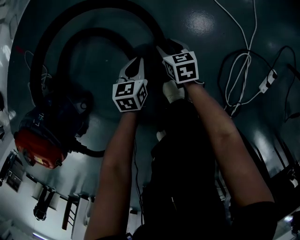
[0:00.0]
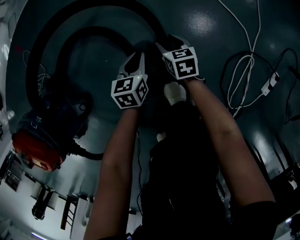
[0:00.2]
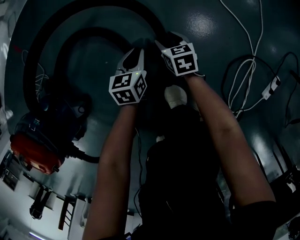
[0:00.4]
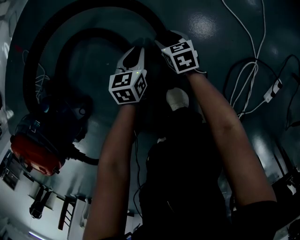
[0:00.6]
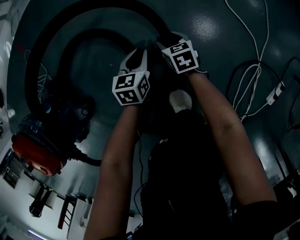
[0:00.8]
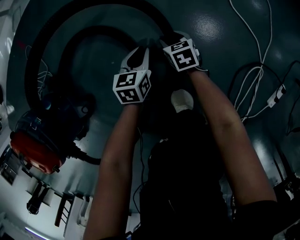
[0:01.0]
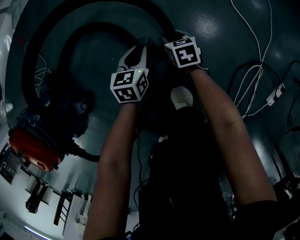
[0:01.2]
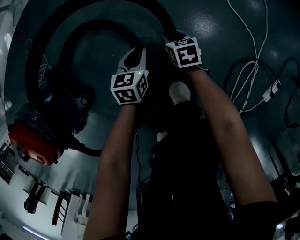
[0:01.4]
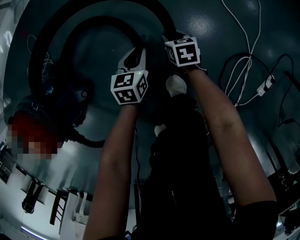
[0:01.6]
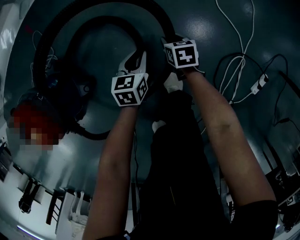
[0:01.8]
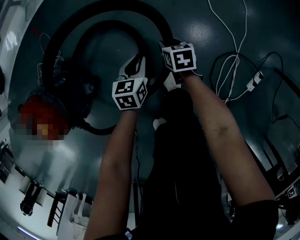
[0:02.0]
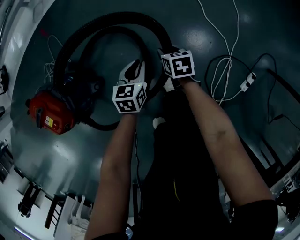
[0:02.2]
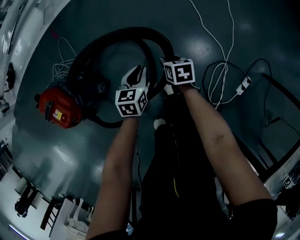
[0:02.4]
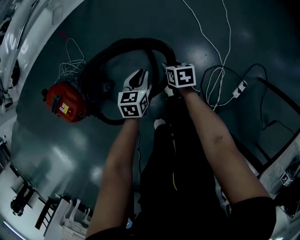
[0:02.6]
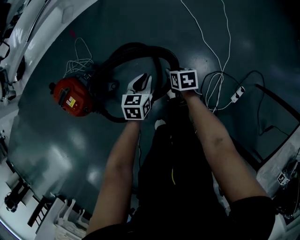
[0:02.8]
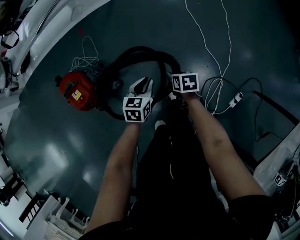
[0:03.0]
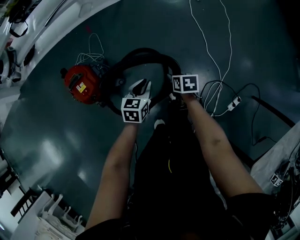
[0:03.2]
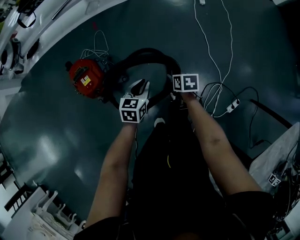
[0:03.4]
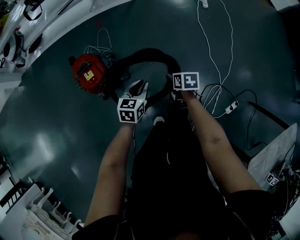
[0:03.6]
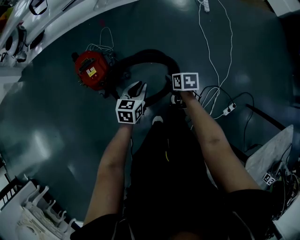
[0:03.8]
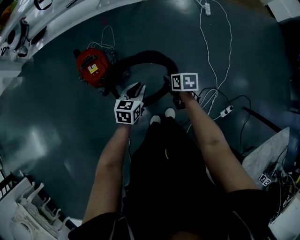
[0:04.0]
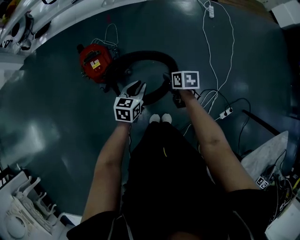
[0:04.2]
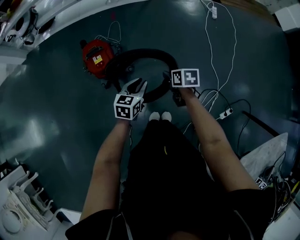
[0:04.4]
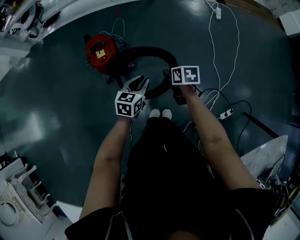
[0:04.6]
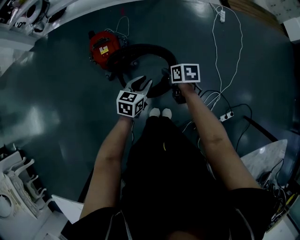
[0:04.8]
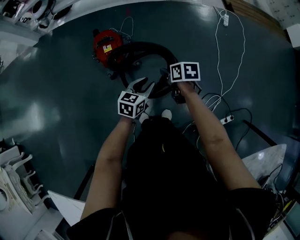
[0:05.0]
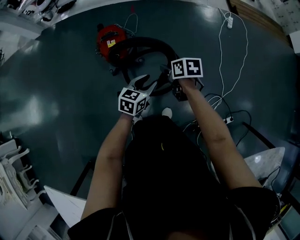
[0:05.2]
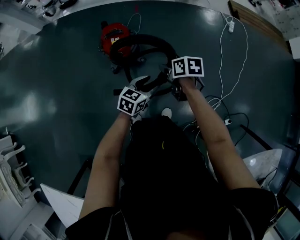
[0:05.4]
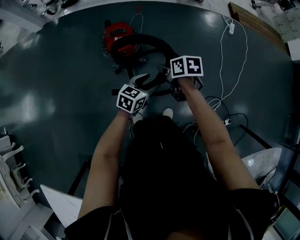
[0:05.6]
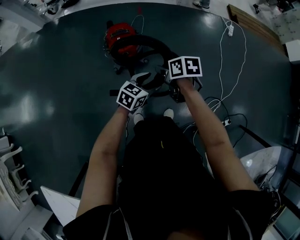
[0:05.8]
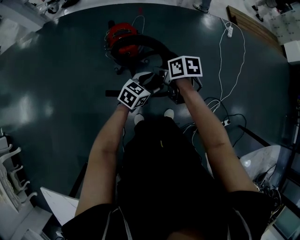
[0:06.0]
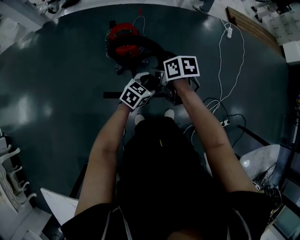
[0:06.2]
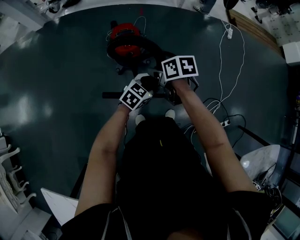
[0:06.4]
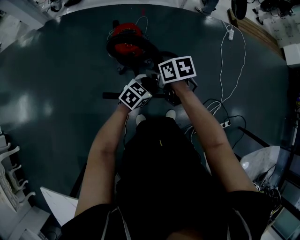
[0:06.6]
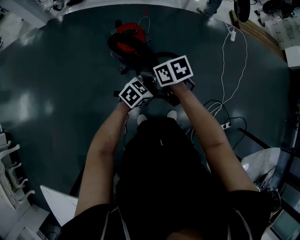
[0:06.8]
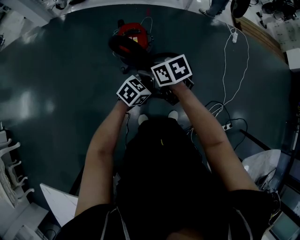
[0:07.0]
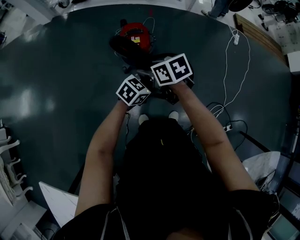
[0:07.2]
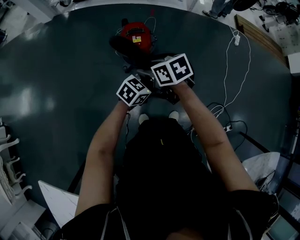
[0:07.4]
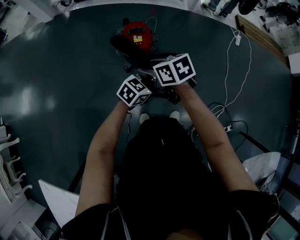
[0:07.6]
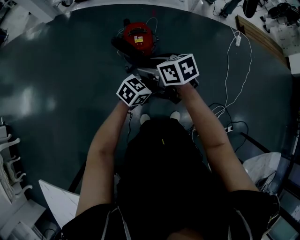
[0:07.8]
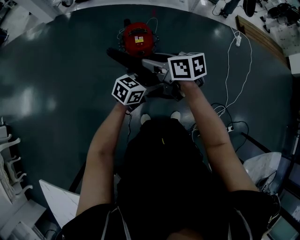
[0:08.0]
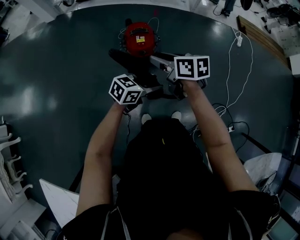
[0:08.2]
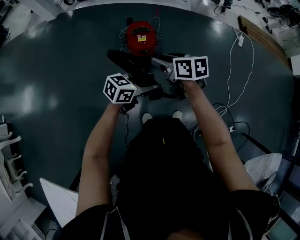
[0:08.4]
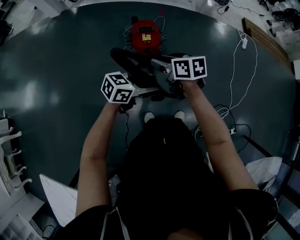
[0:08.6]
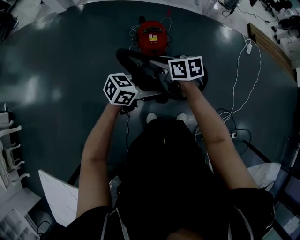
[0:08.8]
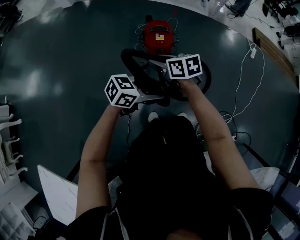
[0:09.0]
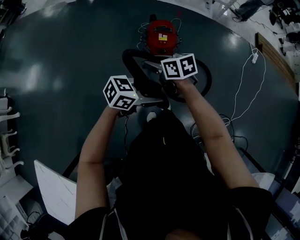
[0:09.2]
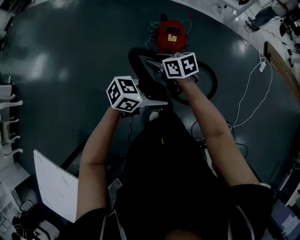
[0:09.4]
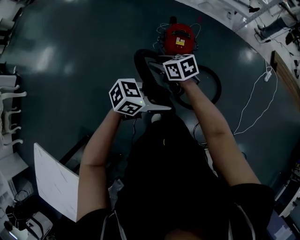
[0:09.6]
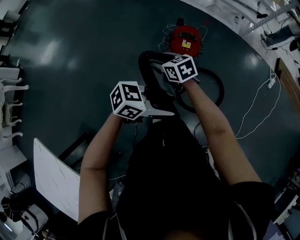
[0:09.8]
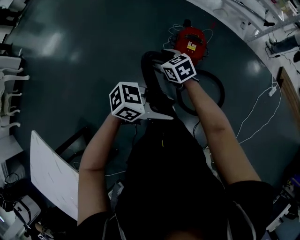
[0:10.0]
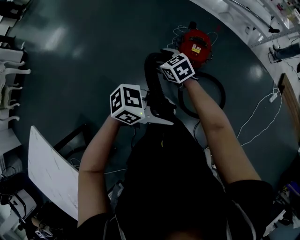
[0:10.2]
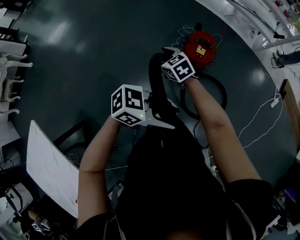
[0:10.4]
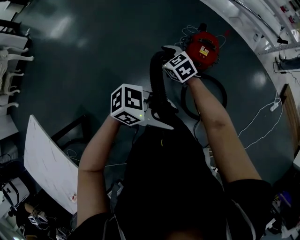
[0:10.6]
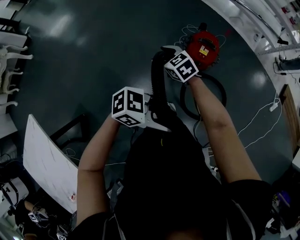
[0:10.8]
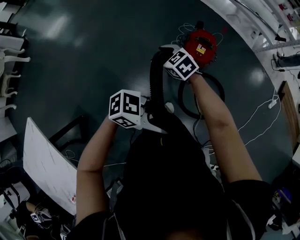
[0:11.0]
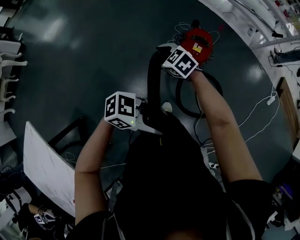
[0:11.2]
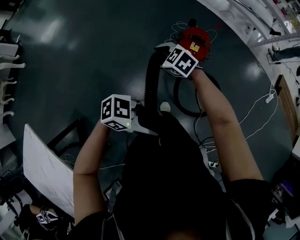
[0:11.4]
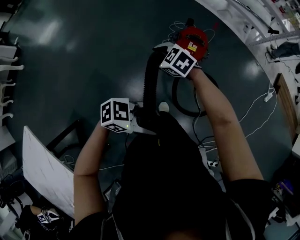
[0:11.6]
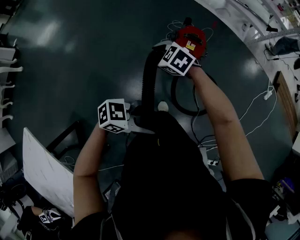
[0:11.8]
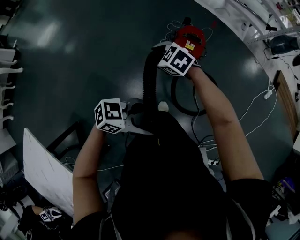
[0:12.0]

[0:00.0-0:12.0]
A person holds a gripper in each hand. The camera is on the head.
0:00.0 to 0:01.6: The left gripper changes place by about 5 cm. The right gripper reaches approximately 10 cm downward, then returns.
0:01.6 to 0:03.0: Both grippers travel together upward, some 40 cm.
0:03.0 to 0:04.4: The right gripper travels upward, to the left and backward by approximately 25 cm. The left gripper travels to the left, upward and backward by approximately 25 cm.
0:04.4 to 0:06.0: The left gripper travels backward and to the left by some 15 cm, and opens its fingers. Meanwhile the right gripper goes some 25 cm to the left and upward.
0:06.0 to 0:07.6: The right gripper moves some 15 cm, and turns by approximately 30 degrees; the left gripper shifts by roughly 10 cm.
0:07.6 to 0:09.0: The left gripper ends up approximately 10 cm from where it was. The right gripper changes place by approximately 10 cm.
0:09.0 to 0:10.4: The right gripper ends up roughly 20 cm from where it was, turns by some 40 degrees, and opens up, while the left gripper heads upward, covering some 5 cm.
0:10.4 to 0:12.0: The right gripper swivels roughly 20 degrees. Meanwhile the left gripper goes roughly 5 cm downward.

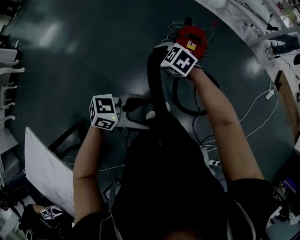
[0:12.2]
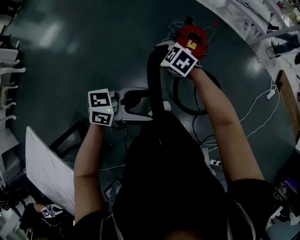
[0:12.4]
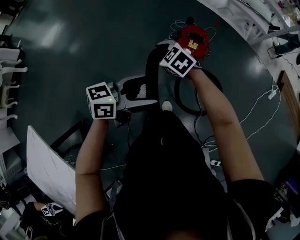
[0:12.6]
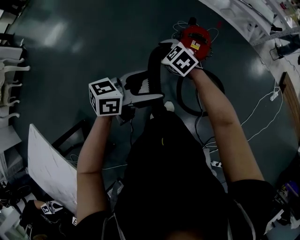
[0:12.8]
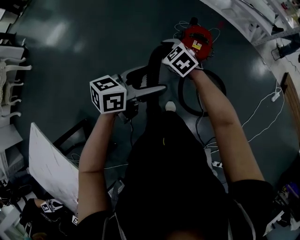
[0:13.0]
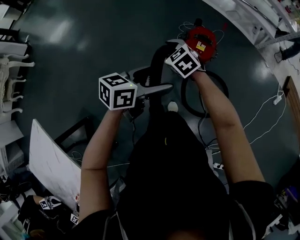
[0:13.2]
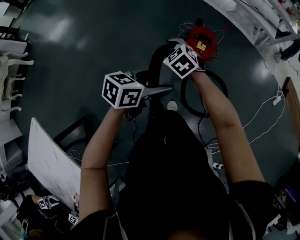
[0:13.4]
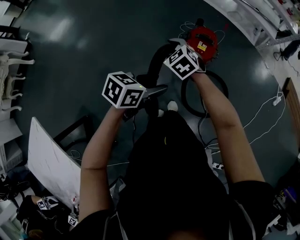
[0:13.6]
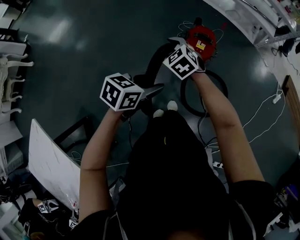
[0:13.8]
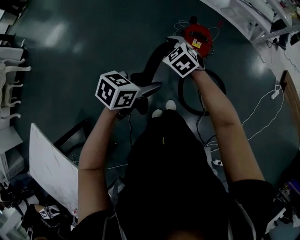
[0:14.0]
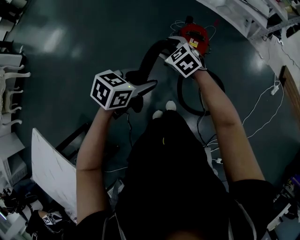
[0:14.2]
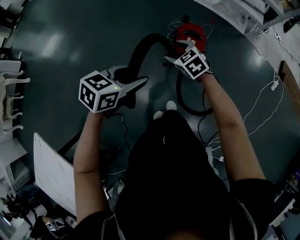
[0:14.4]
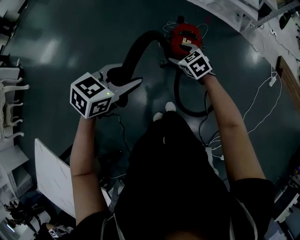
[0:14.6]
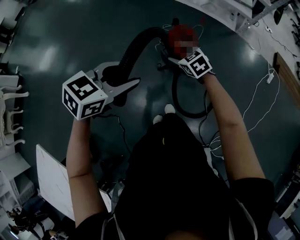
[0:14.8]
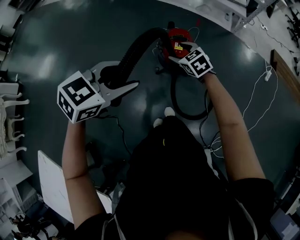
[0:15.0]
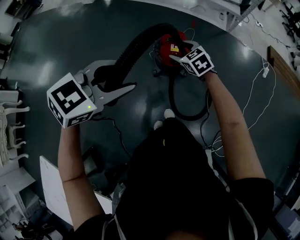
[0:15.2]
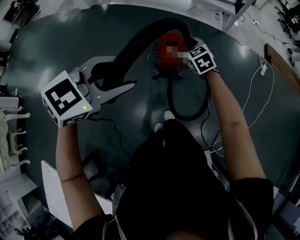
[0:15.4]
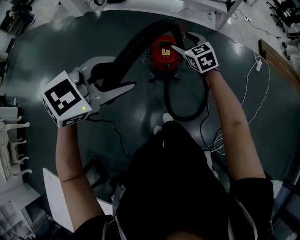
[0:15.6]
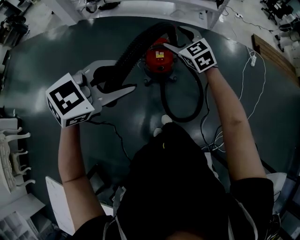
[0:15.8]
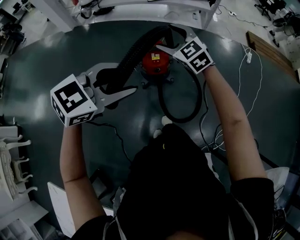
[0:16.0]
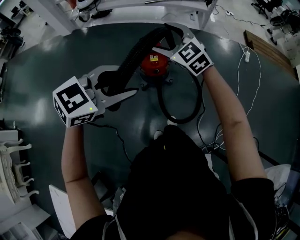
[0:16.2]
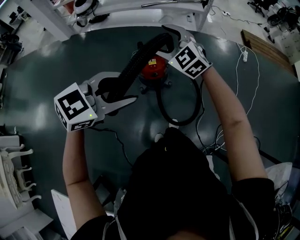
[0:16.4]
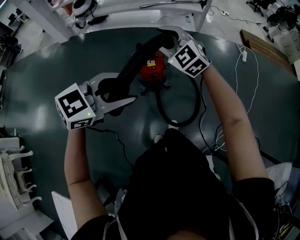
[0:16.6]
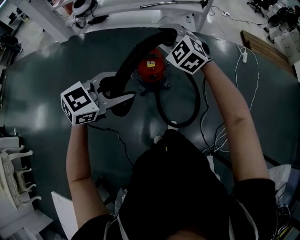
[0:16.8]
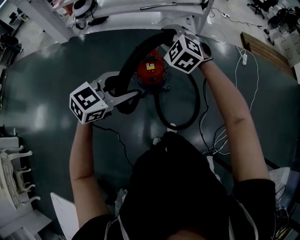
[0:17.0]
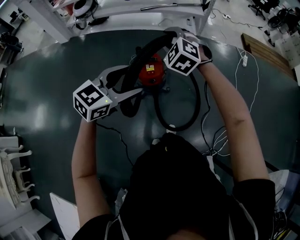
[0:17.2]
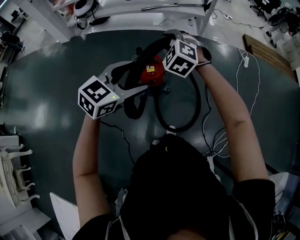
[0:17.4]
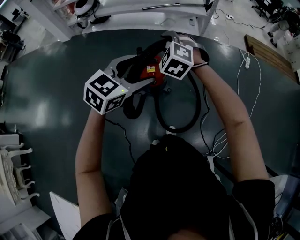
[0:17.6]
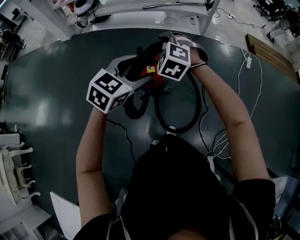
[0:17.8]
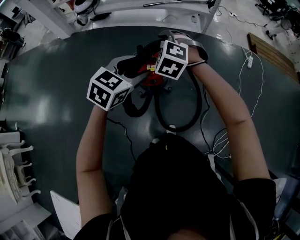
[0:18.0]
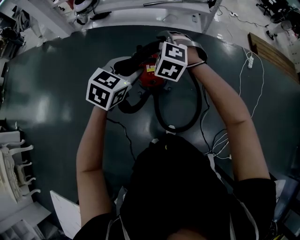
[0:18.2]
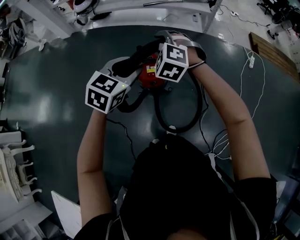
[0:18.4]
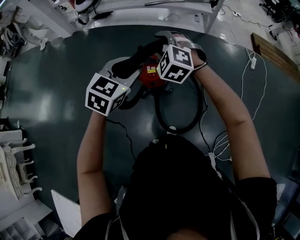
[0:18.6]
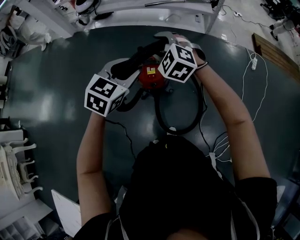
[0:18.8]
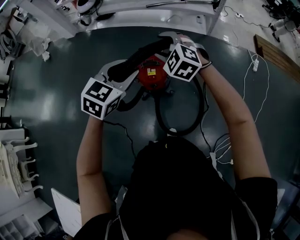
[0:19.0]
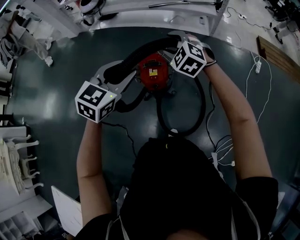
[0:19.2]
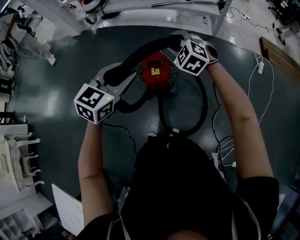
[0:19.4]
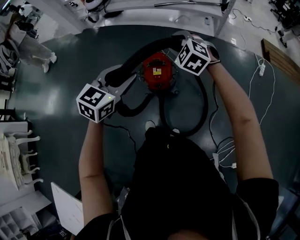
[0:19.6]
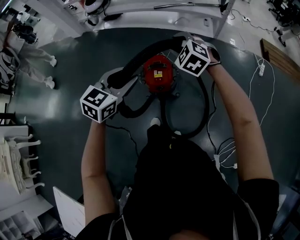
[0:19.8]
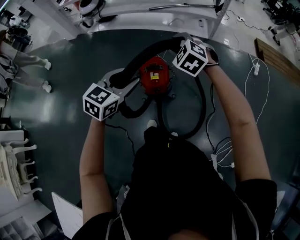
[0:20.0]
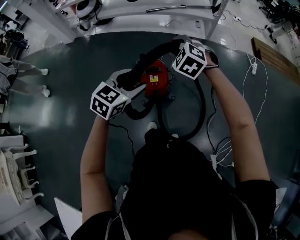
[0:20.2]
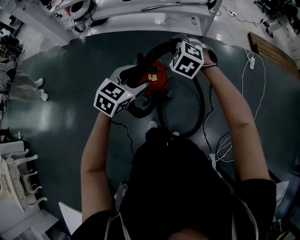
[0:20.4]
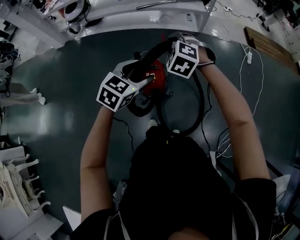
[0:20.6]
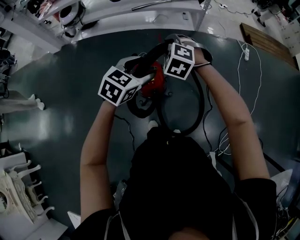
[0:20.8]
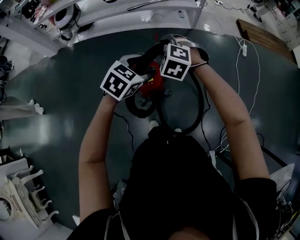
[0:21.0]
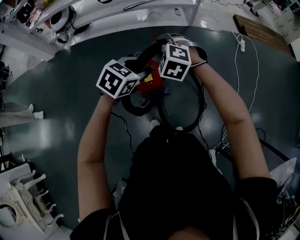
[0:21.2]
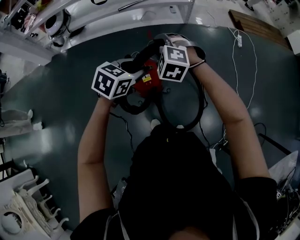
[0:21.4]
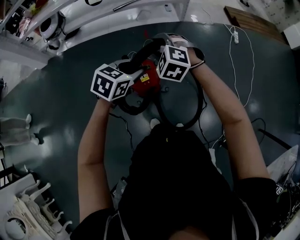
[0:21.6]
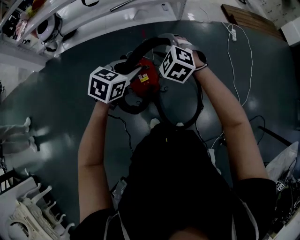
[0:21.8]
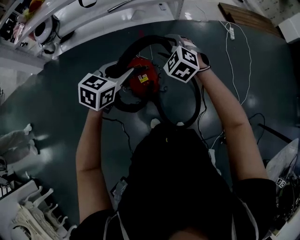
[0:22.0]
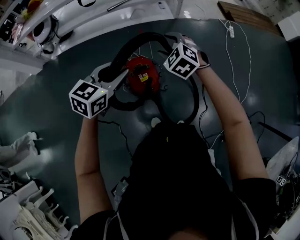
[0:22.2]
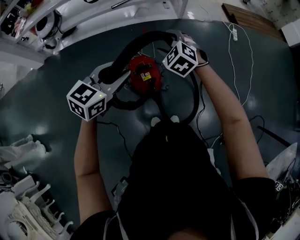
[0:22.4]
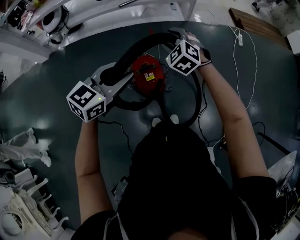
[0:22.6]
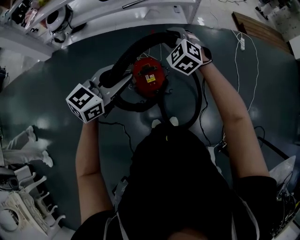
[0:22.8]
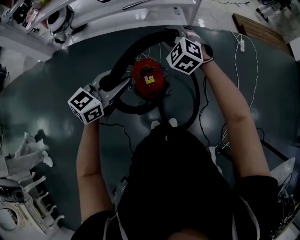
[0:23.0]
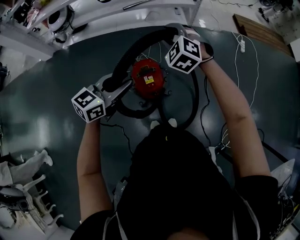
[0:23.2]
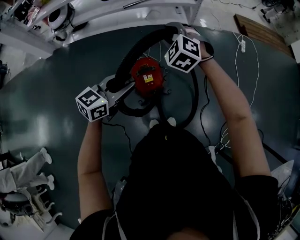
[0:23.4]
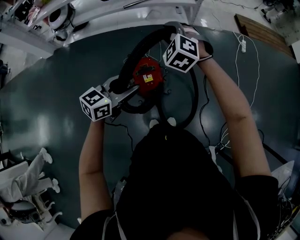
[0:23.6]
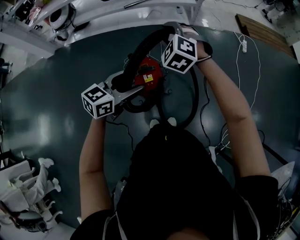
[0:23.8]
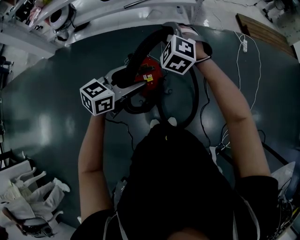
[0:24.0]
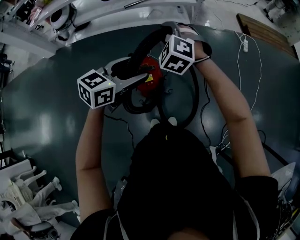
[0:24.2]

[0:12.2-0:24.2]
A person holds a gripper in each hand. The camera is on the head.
0:12.2 to 0:13.8: The right gripper rotates approximately 20 degrees; the left gripper changes place by approximately 10 cm, turns by some 40 degrees, and closes up.
0:13.8 to 0:15.2: The right gripper goes roughly 15 cm to the right, and turns by some 20 degrees; the left gripper is displaced upward by about 20 cm, and twists about 40 degrees clockwise, seen from behind.
0:15.2 to 0:16.6: The left gripper heads to the right, covering roughly 5 cm, and rotates about 20 degrees, while the right gripper is displaced upward by roughly 20 cm, turns by some 40 degrees, and closes its fingers.
0:16.6 to 0:18.2: The right gripper is displaced forward and downward by approximately 10 cm, and rotates about 30 degrees. The left gripper shifts some 20 cm forward, and changes its angle by about 30 degrees.
0:18.2 to 0:19.8: The right gripper shifts about 5 cm forward.
0:19.8 to 0:21.2: The right gripper moves about 5 cm. The left gripper shifts approximately 15 cm forward and downward, and changes its angle by about 30 degrees.
0:21.2 to 0:22.6: The right gripper heads forward, covering about 5 cm; the left gripper is displaced to the left and upward by approximately 10 cm, and changes its angle by about 30 degrees.
0:22.6 to 0:24.2: The left gripper travels to the right by approximately 5 cm, and opens. Meanwhile the right gripper is displaced upward by approximately 5 cm.
